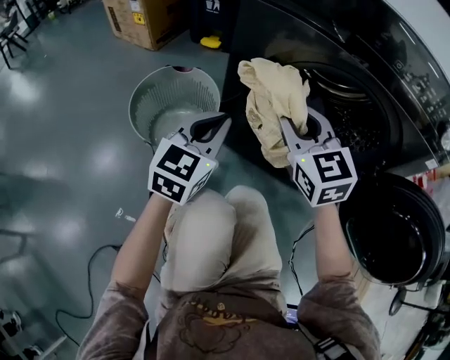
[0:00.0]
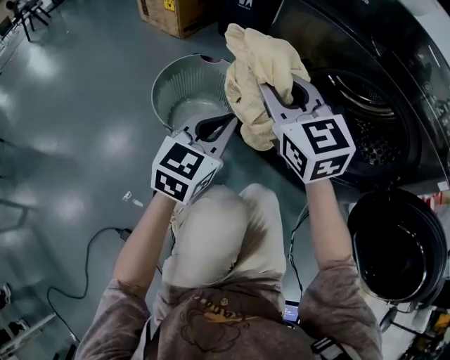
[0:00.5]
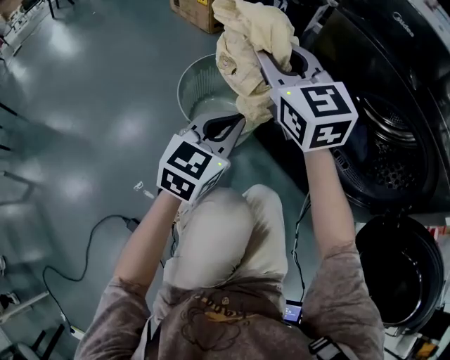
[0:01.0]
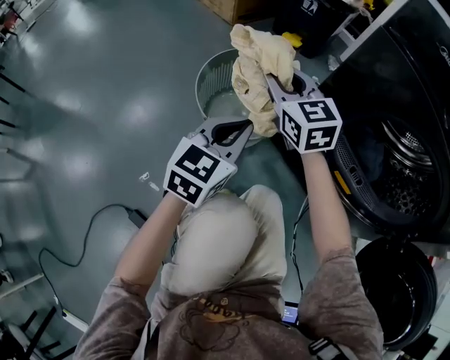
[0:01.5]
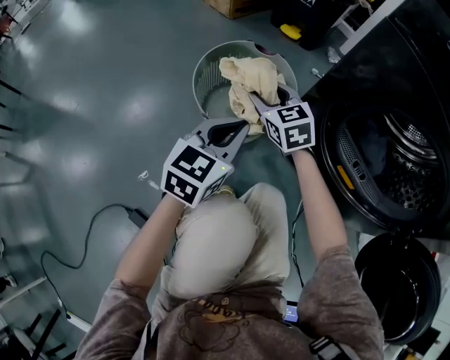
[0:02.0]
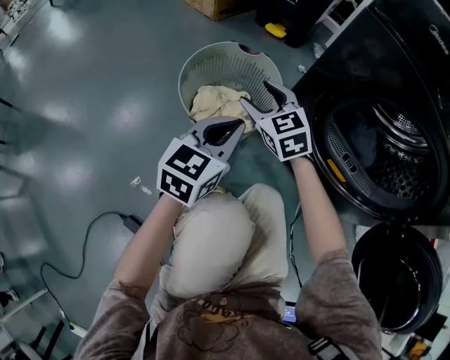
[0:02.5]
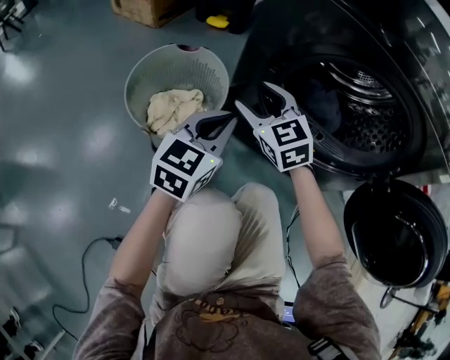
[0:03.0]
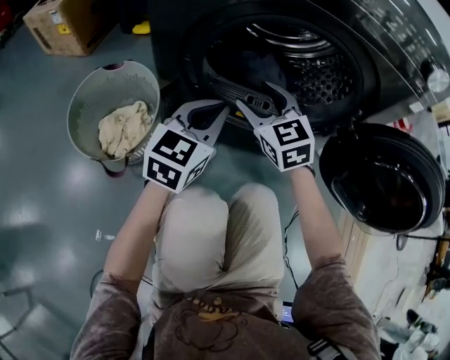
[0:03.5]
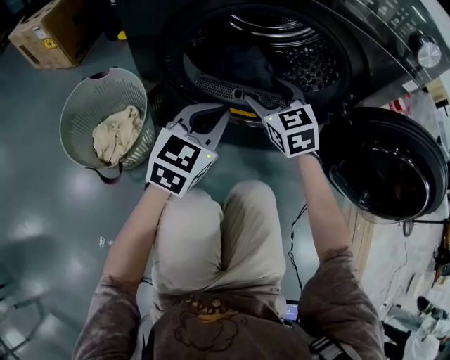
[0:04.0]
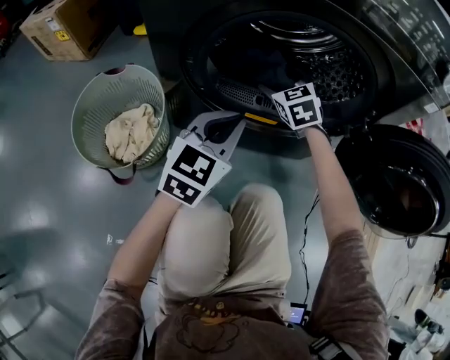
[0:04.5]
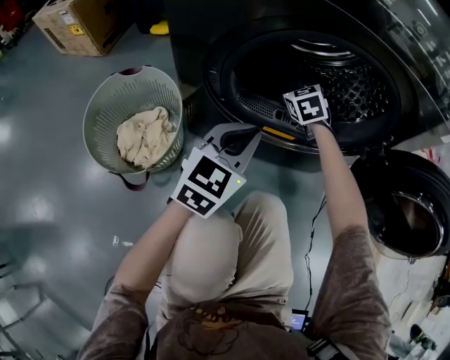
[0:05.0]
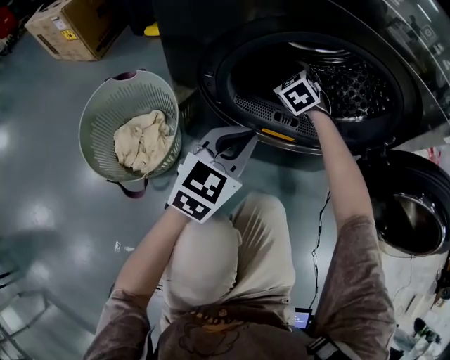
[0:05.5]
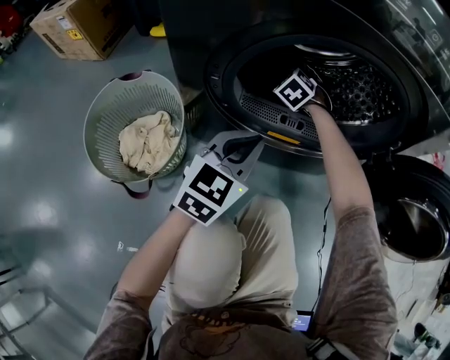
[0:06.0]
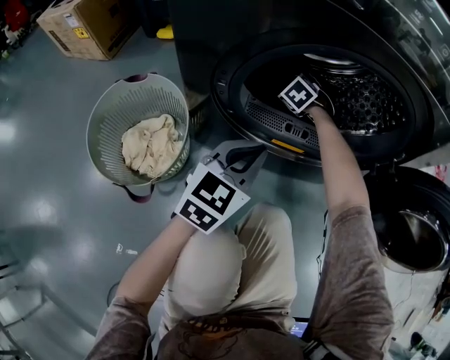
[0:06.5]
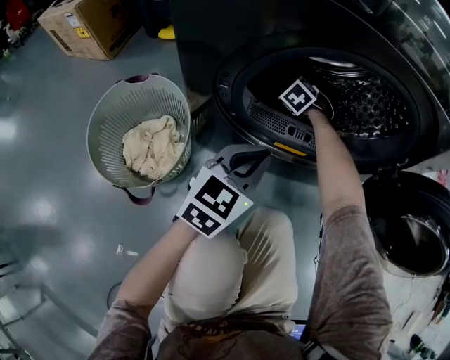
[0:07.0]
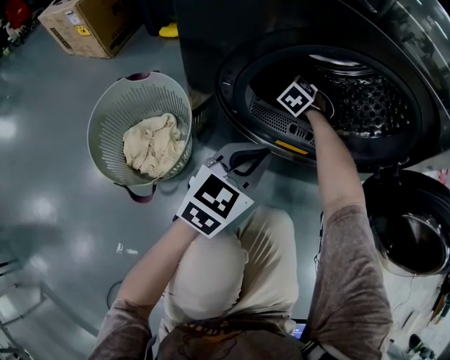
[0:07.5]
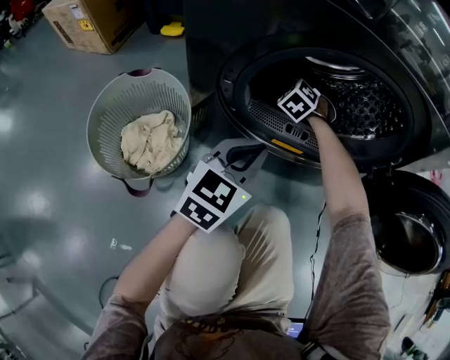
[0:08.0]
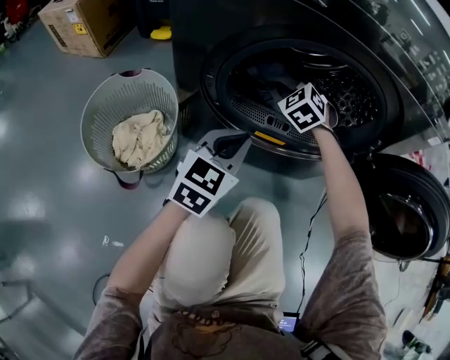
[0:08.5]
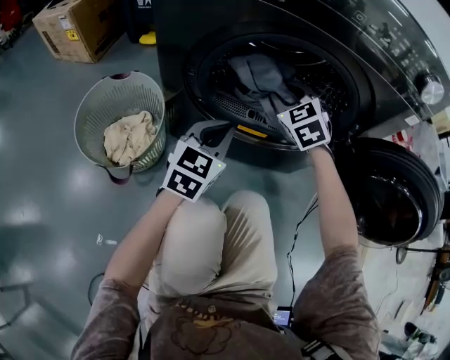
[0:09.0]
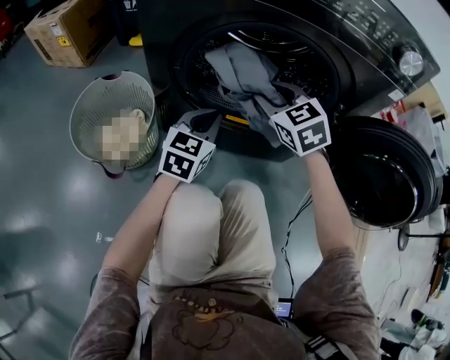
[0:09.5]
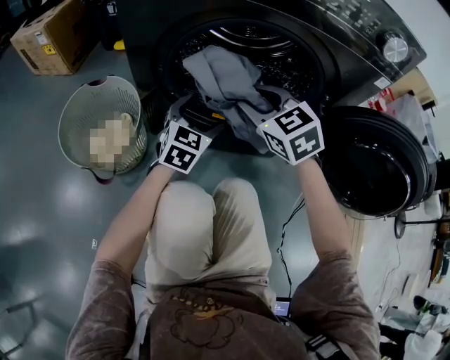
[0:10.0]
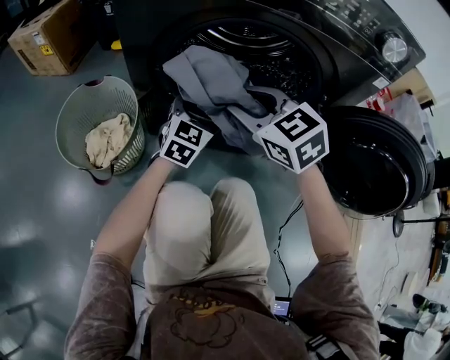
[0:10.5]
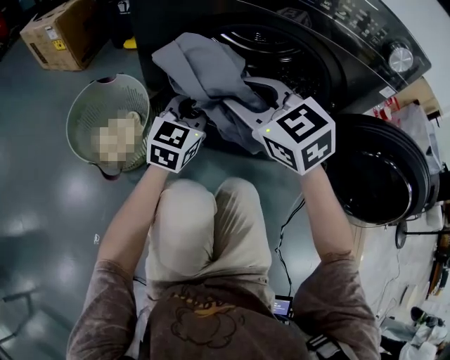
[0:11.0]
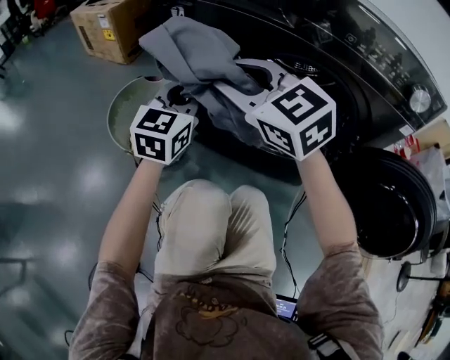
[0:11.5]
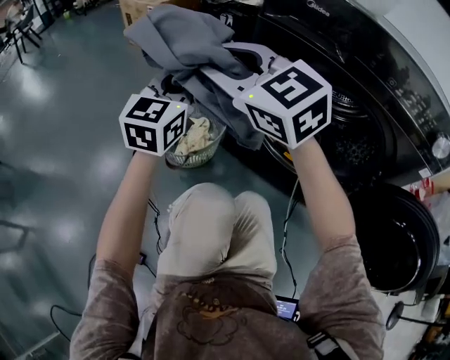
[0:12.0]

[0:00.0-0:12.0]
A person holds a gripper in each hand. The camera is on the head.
0:00.0 to 0:02.0: The left gripper moves to the left and downward, some 15 cm. Meanwhile the right gripper moves to the left, downward and forward, about 30 cm, and rotates about 30 degrees.
0:02.0 to 0:04.0: The right gripper changes place by about 40 cm, and turns by approximately 40 degrees. Meanwhile the left gripper moves about 30 cm, and rotates about 40 degrees.
0:04.0 to 0:06.0: The right gripper moves forward, downward and to the left, roughly 25 cm, rotates some 40 degrees, and opens.
0:06.0 to 0:08.0: The right gripper closes.
0:08.0 to 0:10.0: The right gripper heads backward and upward, covering some 30 cm, and rotates about 40 degrees. The left gripper shifts by roughly 5 cm, and opens its fingers.
0:10.0 to 0:12.0: The right gripper ends up some 35 cm from where it was, and turns by roughly 40 degrees, while the left gripper shifts by approximately 35 cm, turns by roughly 30 degrees, and closes up.

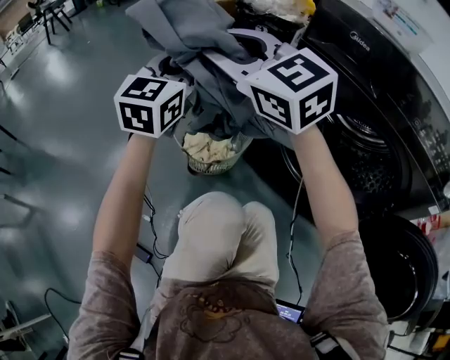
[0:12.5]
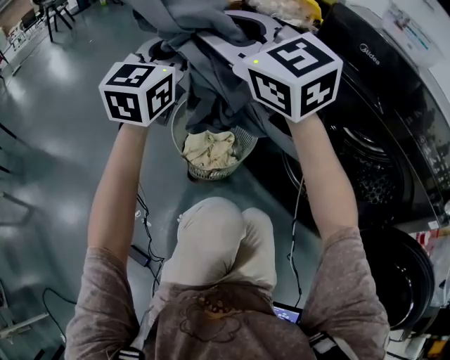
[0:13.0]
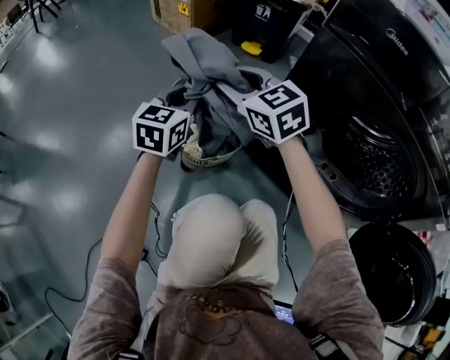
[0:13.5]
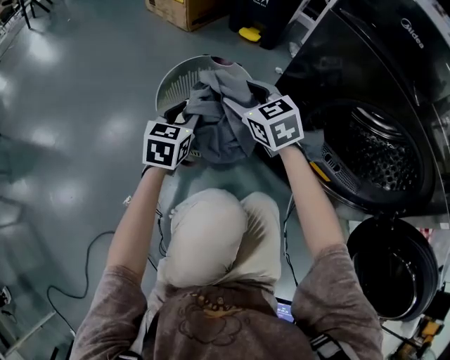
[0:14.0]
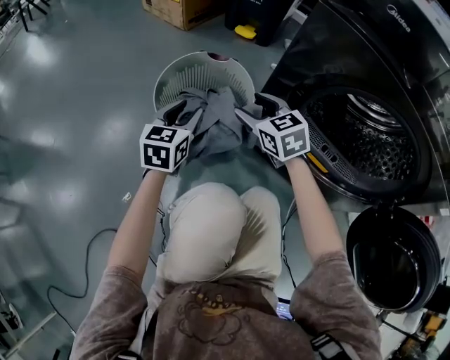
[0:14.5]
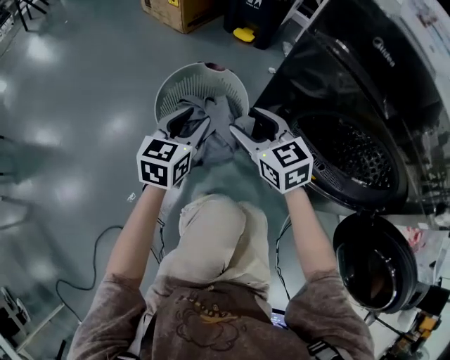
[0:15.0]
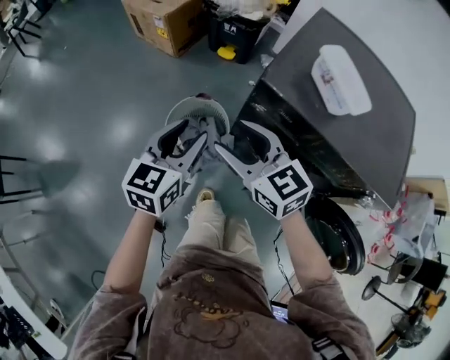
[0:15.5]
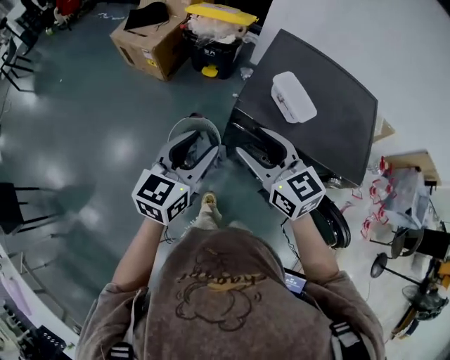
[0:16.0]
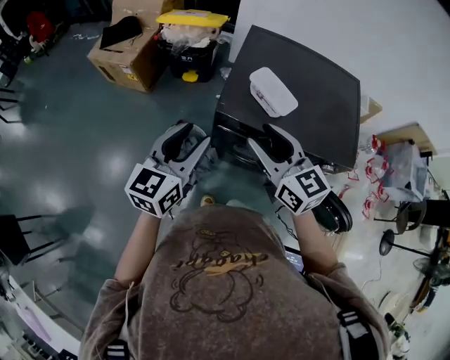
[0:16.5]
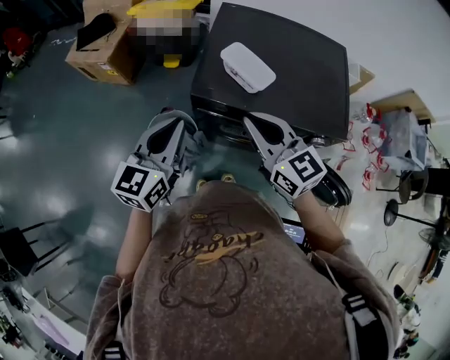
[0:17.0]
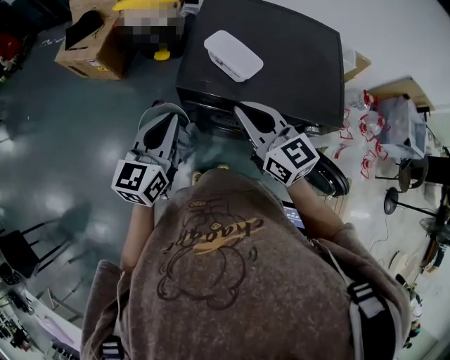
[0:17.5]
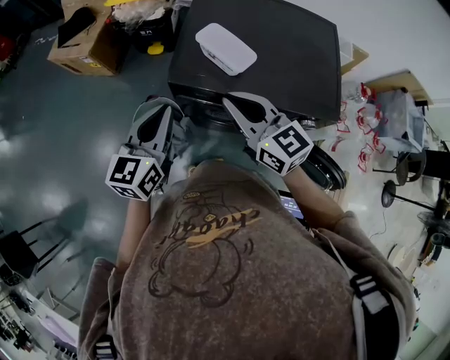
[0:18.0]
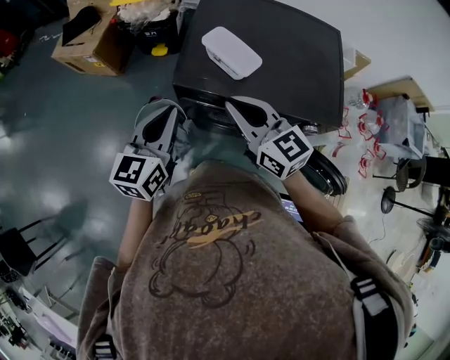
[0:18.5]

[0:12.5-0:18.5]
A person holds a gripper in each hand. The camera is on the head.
0:12.5 to 0:14.5: The right gripper shifts approximately 35 cm downward and to the right, and rotates approximately 40 degrees; the left gripper goes some 30 cm downward, and rotates approximately 30 degrees.
0:14.5 to 0:16.5: The two grippers go about 60 cm upward. The left gripper turns by some 30 degrees, while the right gripper changes its angle by about 30 degrees.
0:16.5 to 0:18.5: The right gripper ends up approximately 5 cm from where it was, and closes up. Meanwhile the left gripper heads to the right, covering some 5 cm, and closes.

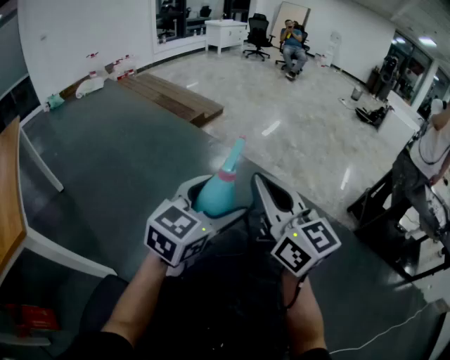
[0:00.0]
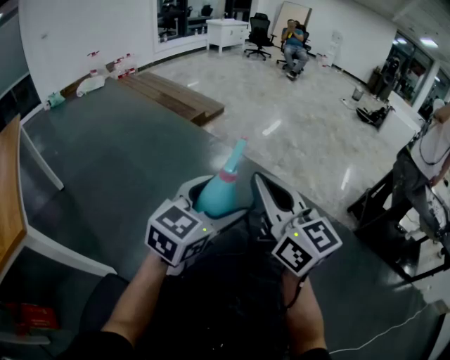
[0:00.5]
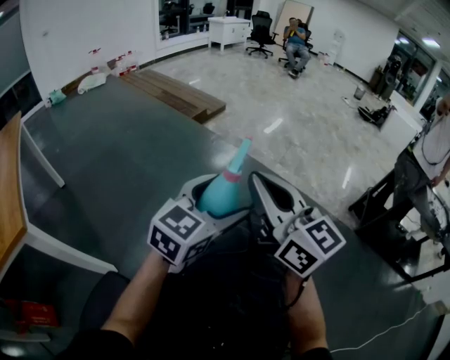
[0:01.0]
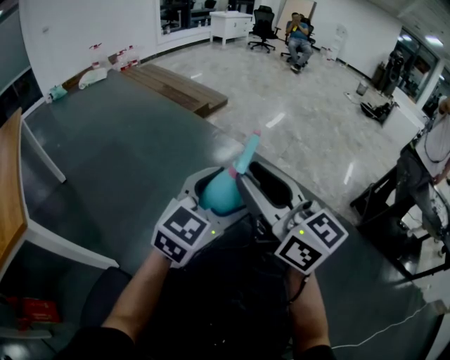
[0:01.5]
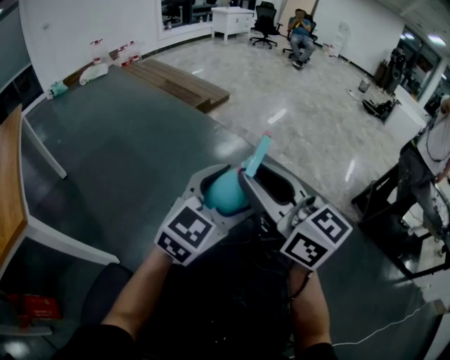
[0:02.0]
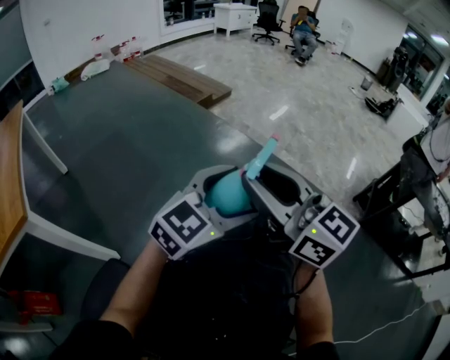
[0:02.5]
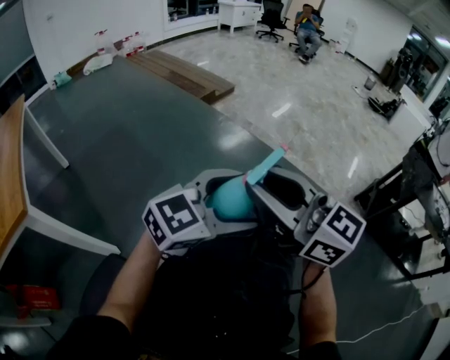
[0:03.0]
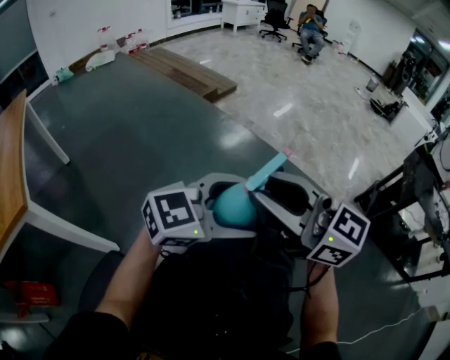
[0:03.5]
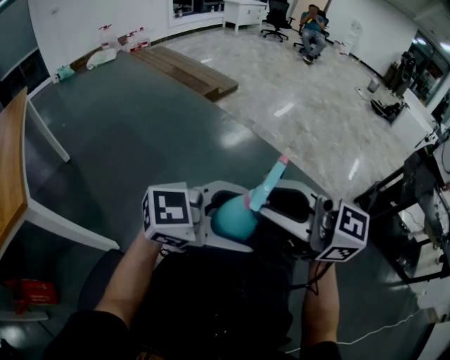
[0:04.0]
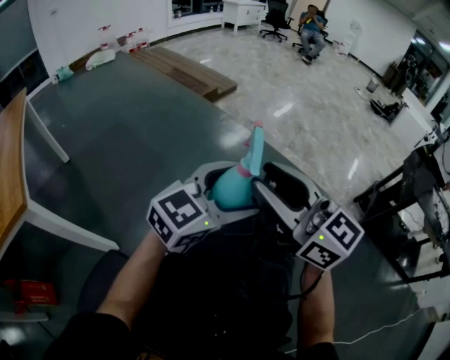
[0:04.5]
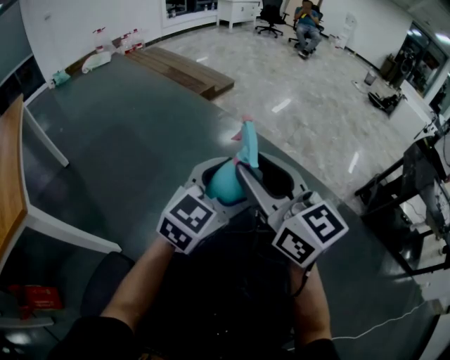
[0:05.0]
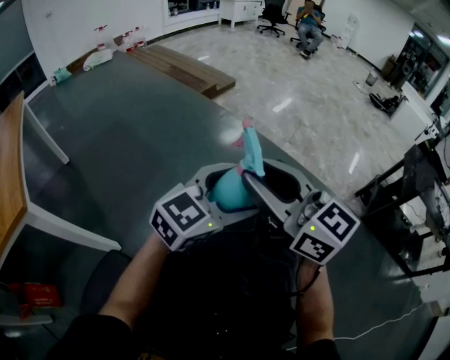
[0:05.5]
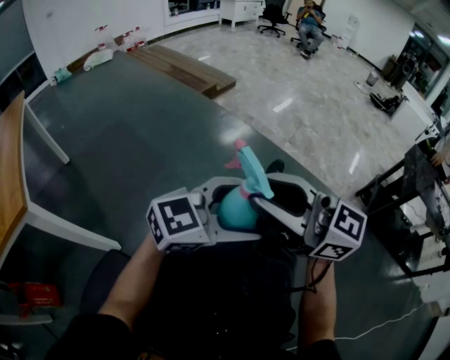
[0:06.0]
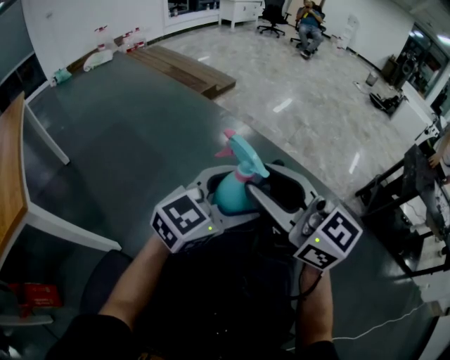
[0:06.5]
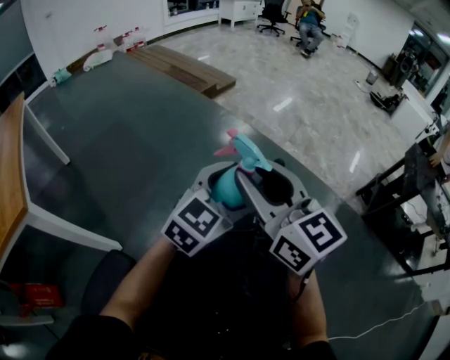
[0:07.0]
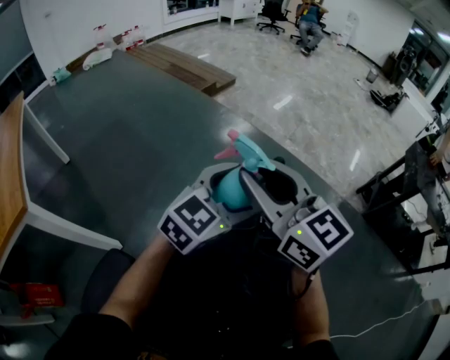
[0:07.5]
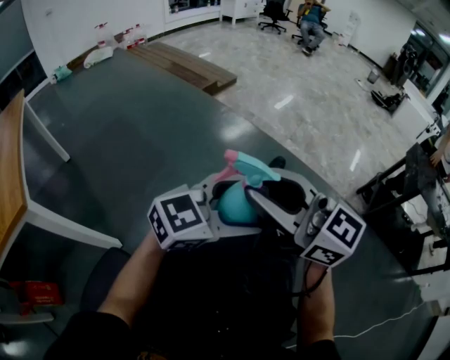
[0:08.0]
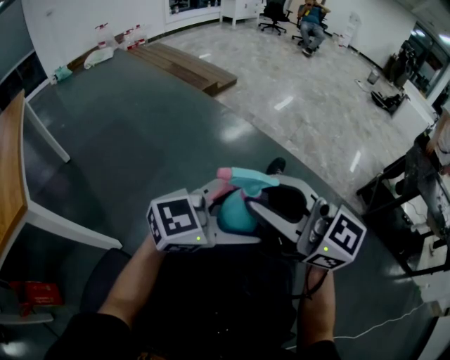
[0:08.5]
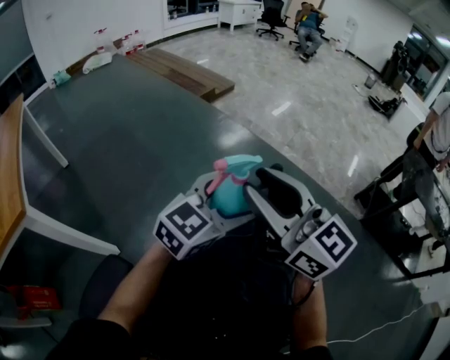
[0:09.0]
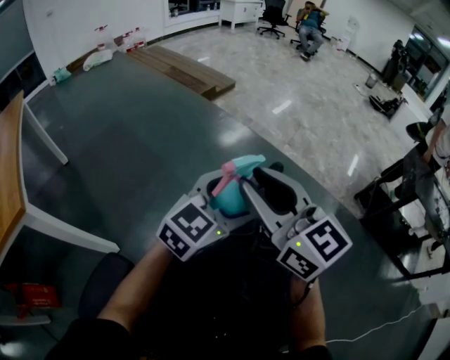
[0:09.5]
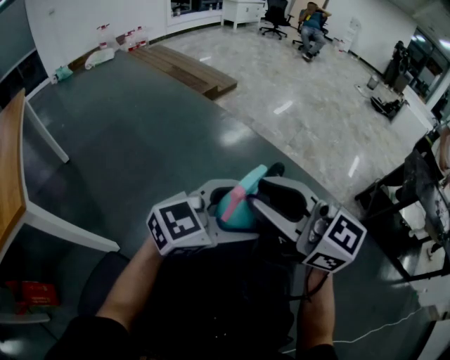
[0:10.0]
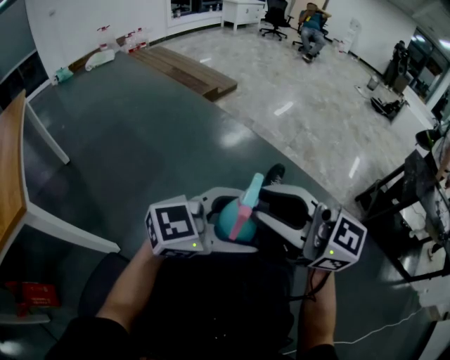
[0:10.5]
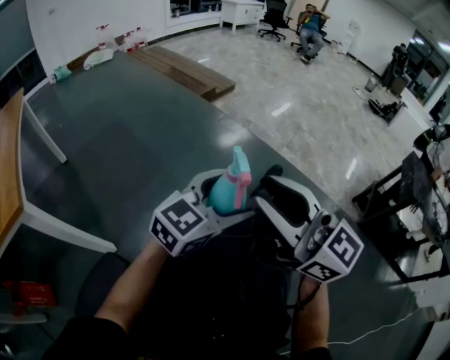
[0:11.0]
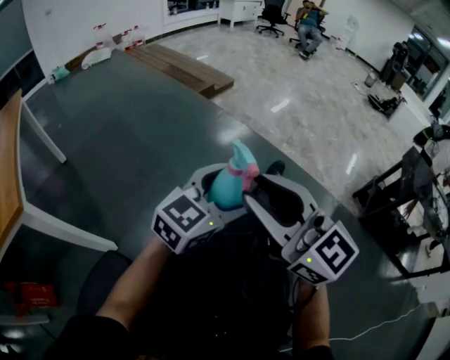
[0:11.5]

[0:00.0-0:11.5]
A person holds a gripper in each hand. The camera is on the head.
0:00.0 to 0:02.0: The right gripper opens its fingers.
0:02.0 to 0:04.0: The left gripper ends up roughly 10 cm from where it was, and rotates roughly 40 degrees; the right gripper changes place by approximately 5 cm, and swivels approximately 30 degrees.
0:06.0 to 0:07.5: The right gripper swivels some 30 degrees. Meanwhile the left gripper shifts by some 5 cm, and rotates about 20 degrees.
